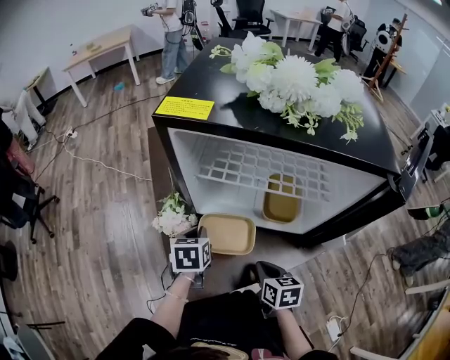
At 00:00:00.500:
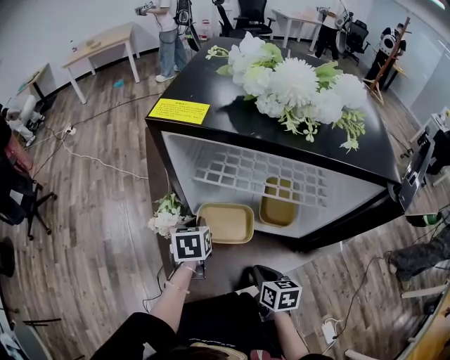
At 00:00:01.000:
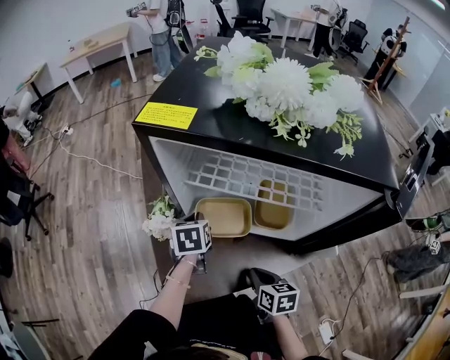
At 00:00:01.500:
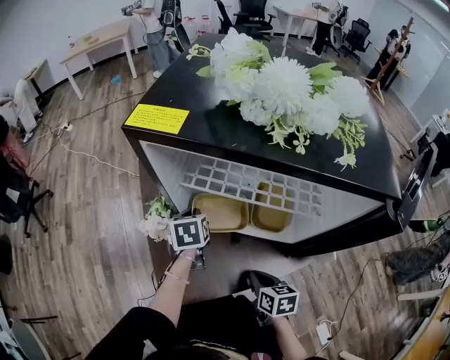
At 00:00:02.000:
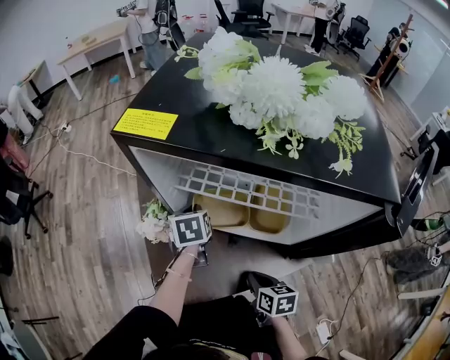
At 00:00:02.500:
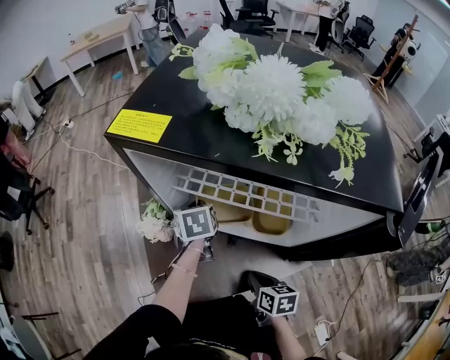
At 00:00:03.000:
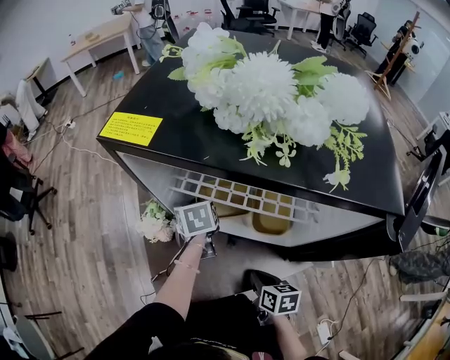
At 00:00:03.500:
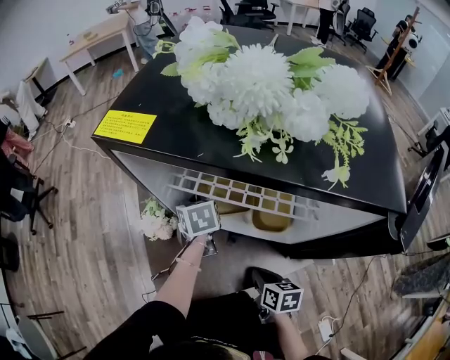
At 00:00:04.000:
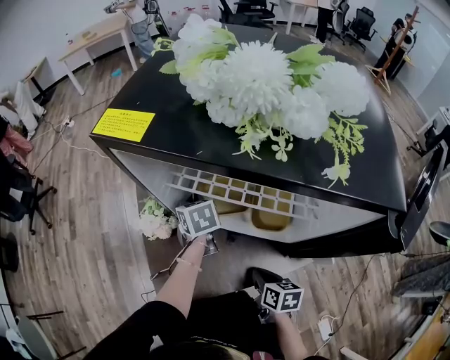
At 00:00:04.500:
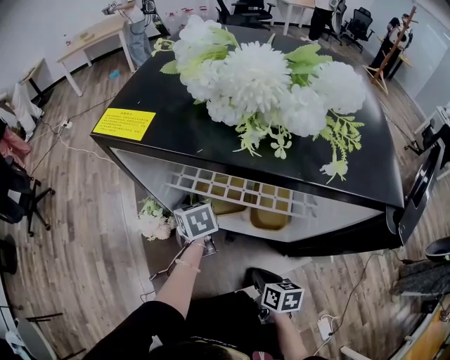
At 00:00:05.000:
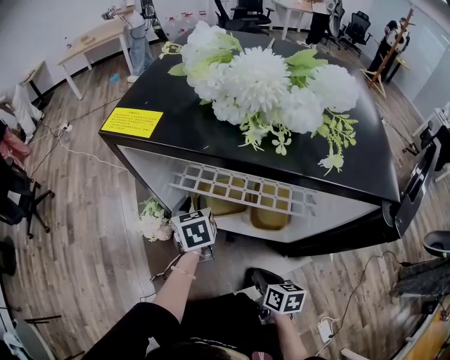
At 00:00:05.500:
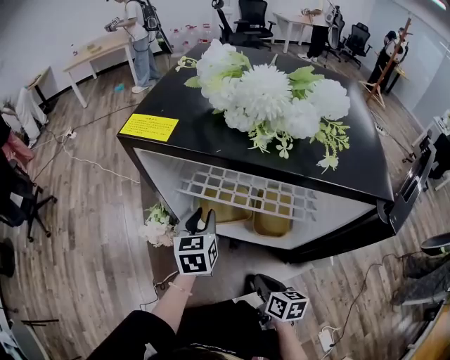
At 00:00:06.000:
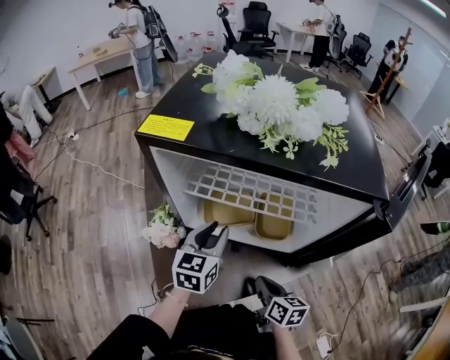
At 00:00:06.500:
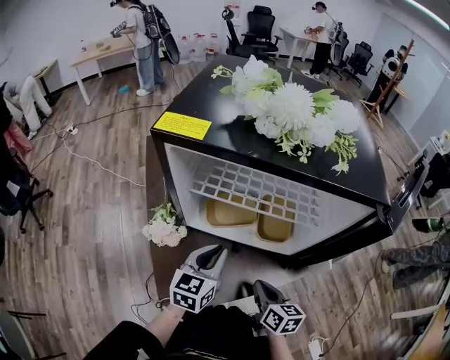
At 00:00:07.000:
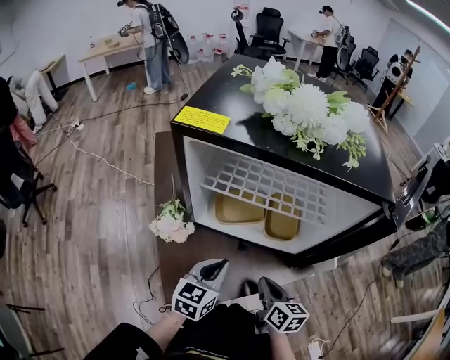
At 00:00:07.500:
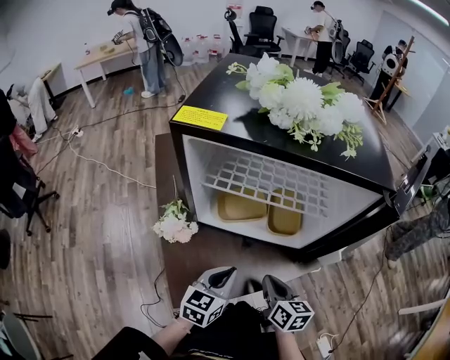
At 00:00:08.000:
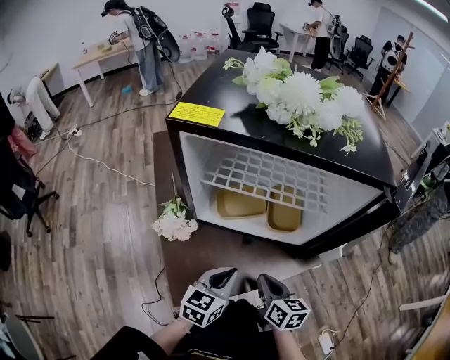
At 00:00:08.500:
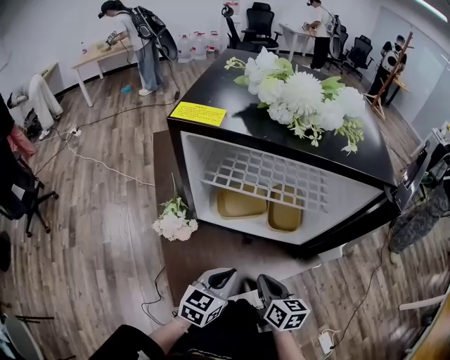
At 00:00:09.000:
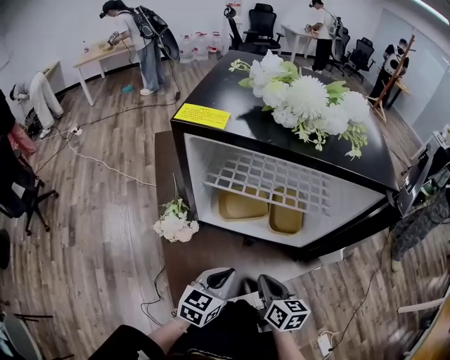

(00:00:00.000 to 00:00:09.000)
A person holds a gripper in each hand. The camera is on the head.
00:00:00.000 - 00:00:02.000: The left gripper goes about 10 cm forward.
00:00:02.000 - 00:00:04.500: The grippers make only small movements.
00:00:04.500 - 00:00:07.000: The right gripper moves upward, roughly 5 cm, and swivels about 20 degrees. The left gripper shifts by about 20 cm, rotates about 50 degrees, and closes its fingers.
00:00:07.000 - 00:00:09.000: There are only small adjustments of the grippers.

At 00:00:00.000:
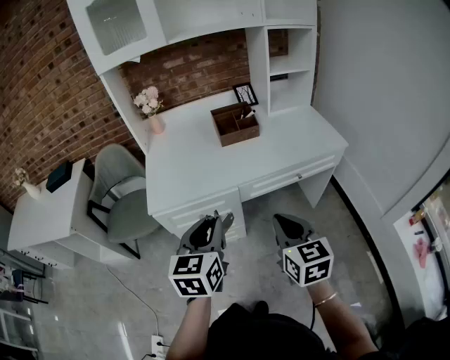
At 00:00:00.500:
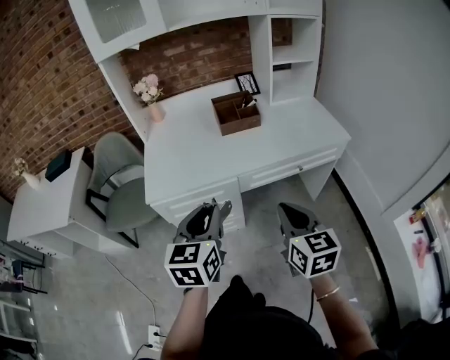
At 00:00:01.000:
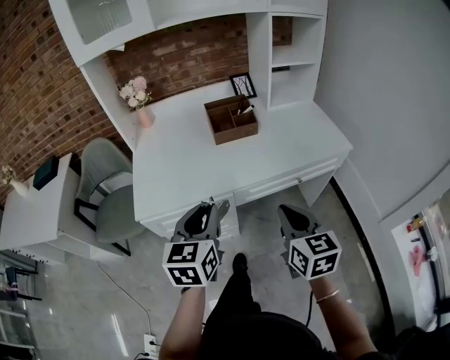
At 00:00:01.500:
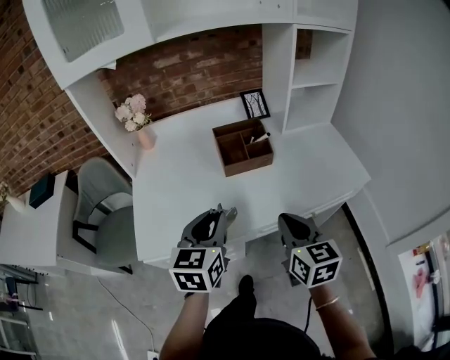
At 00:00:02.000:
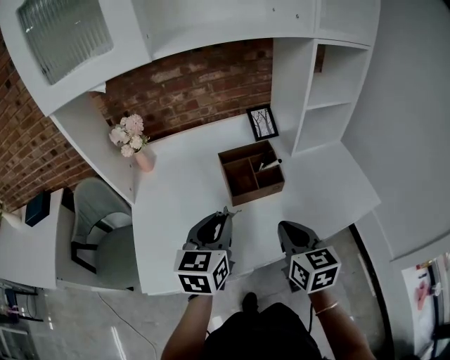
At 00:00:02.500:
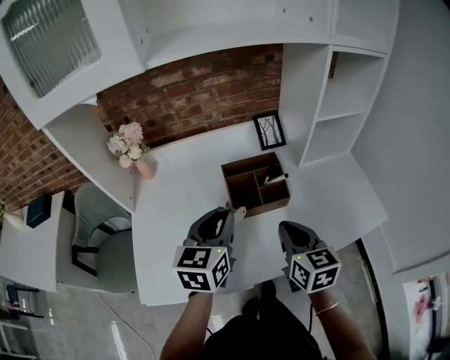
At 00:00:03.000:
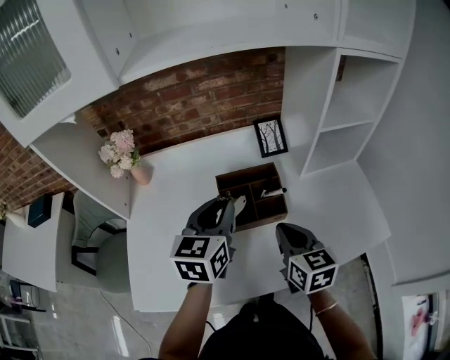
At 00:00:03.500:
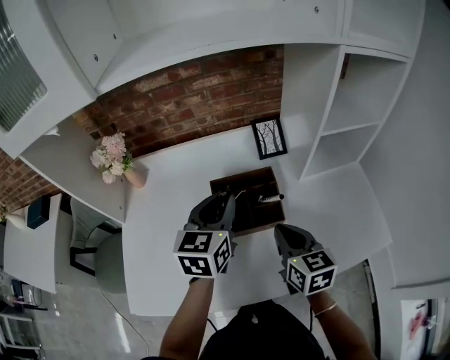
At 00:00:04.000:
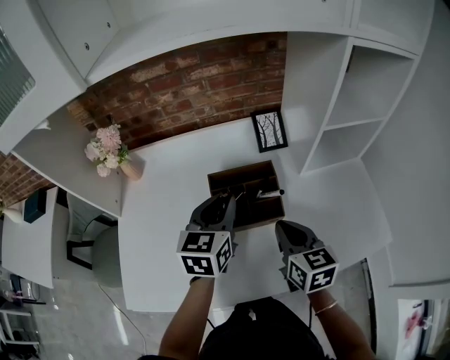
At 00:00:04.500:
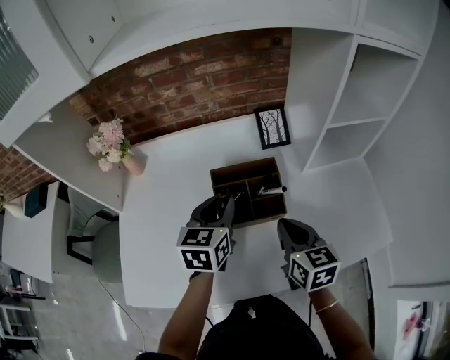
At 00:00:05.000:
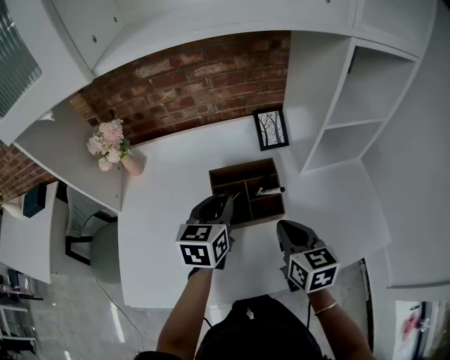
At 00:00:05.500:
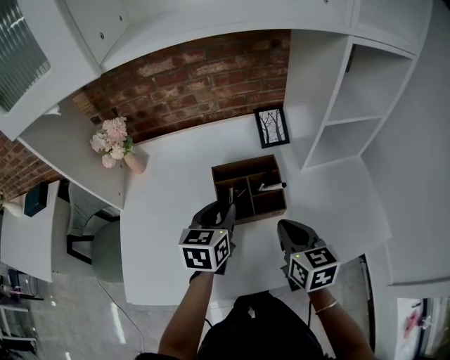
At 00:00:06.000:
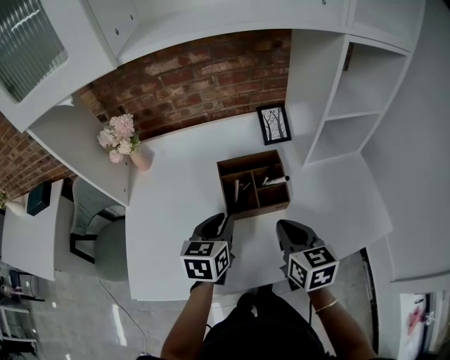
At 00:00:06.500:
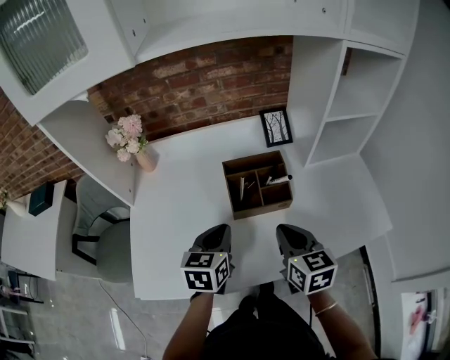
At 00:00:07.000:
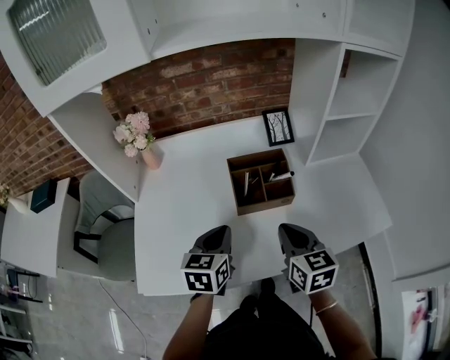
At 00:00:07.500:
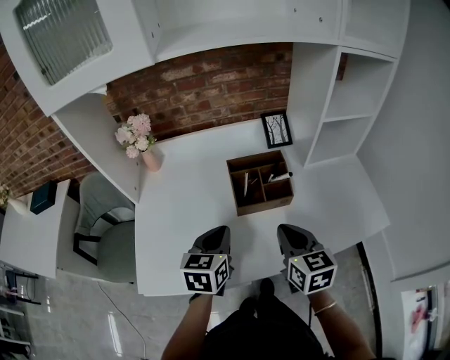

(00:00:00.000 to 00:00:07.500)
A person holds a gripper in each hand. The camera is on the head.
00:00:00.000 - 00:00:02.000: Both grippers move forward, approximately 35 cm.
00:00:02.000 - 00:00:04.000: The grippers both shift forward by approximately 15 cm.
00:00:04.000 - 00:00:05.500: The left gripper ends up about 5 cm from where it was.
00:00:05.500 - 00:00:07.500: The left gripper moves backward and to the left, roughly 15 cm, and closes its fingers, while the right gripper moves backward, approximately 5 cm.

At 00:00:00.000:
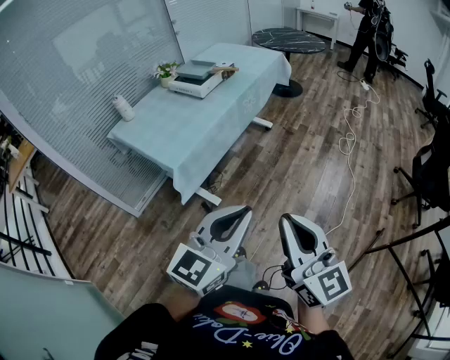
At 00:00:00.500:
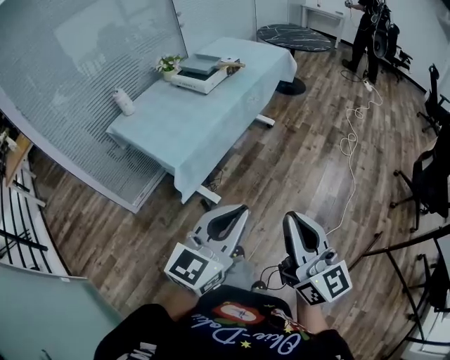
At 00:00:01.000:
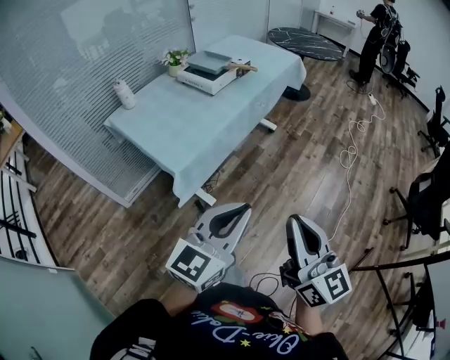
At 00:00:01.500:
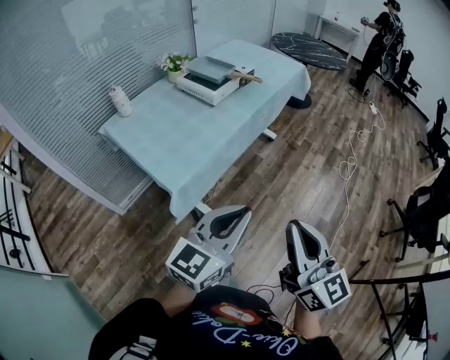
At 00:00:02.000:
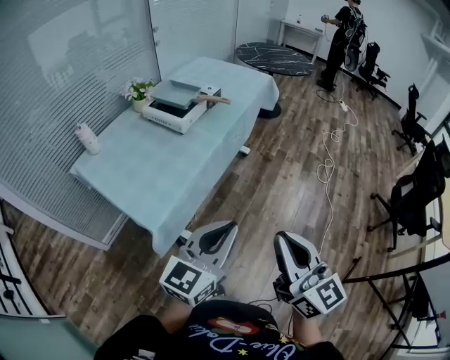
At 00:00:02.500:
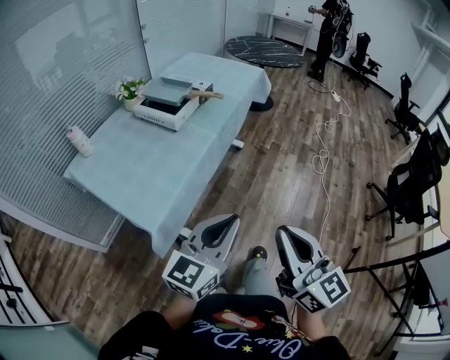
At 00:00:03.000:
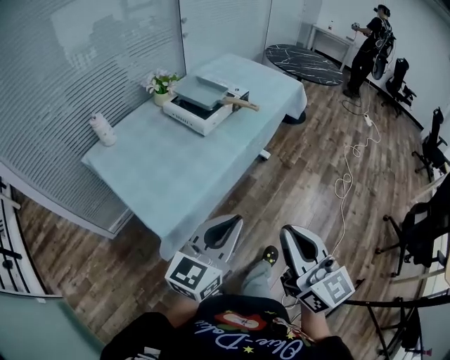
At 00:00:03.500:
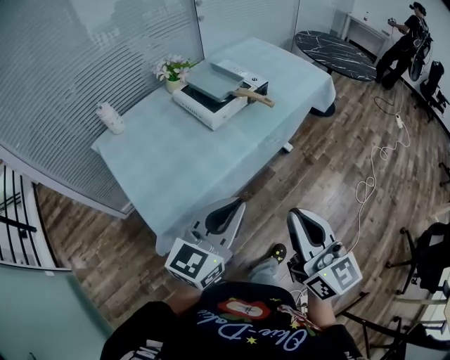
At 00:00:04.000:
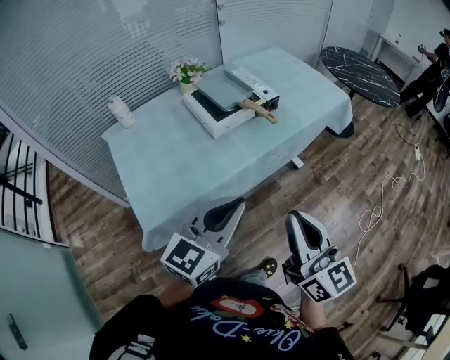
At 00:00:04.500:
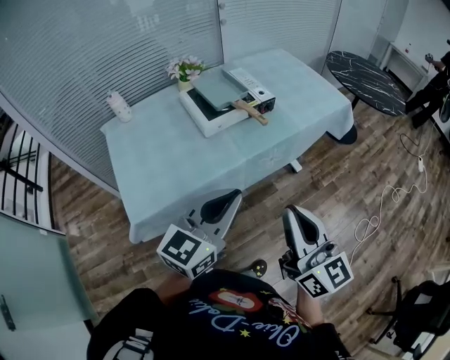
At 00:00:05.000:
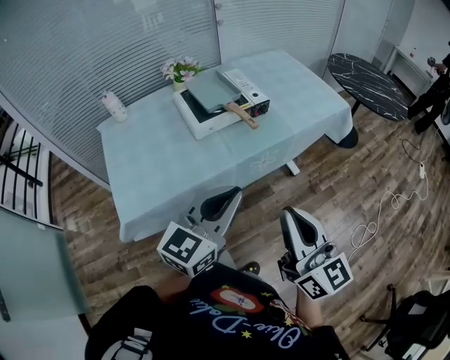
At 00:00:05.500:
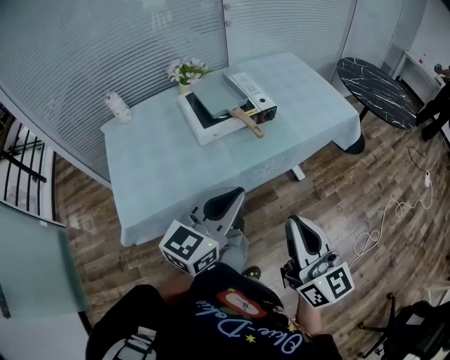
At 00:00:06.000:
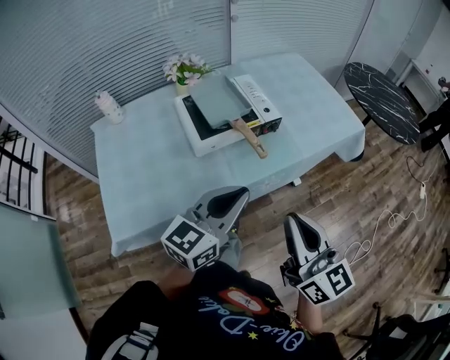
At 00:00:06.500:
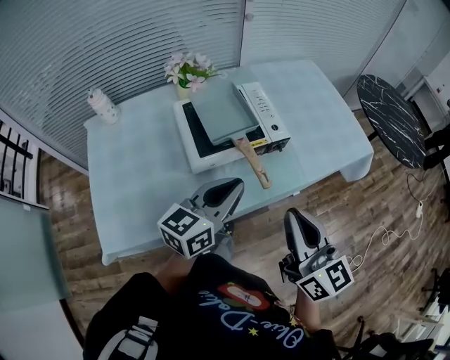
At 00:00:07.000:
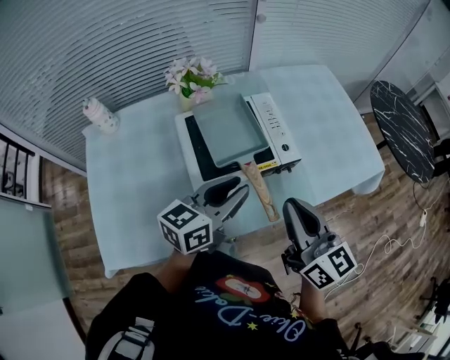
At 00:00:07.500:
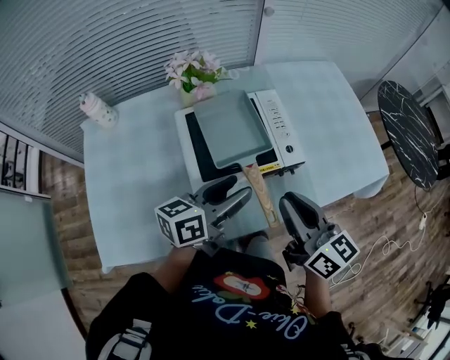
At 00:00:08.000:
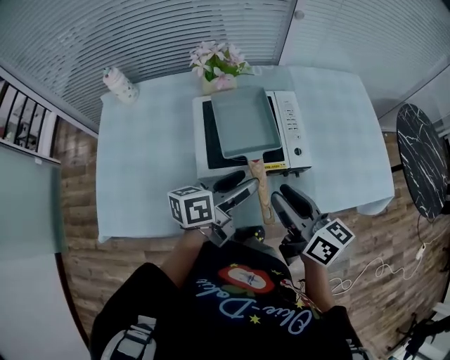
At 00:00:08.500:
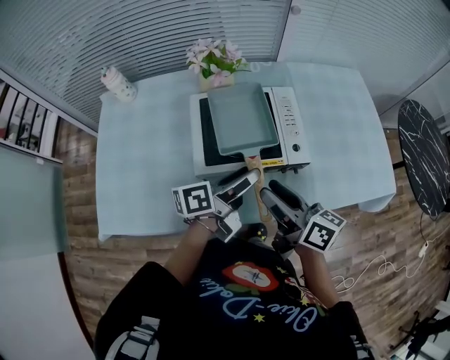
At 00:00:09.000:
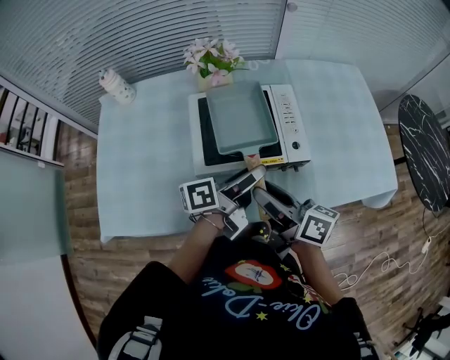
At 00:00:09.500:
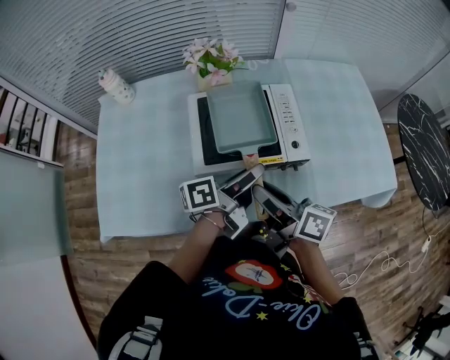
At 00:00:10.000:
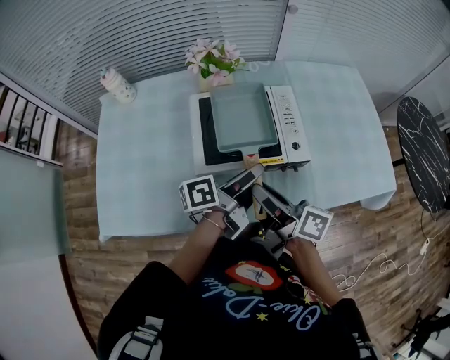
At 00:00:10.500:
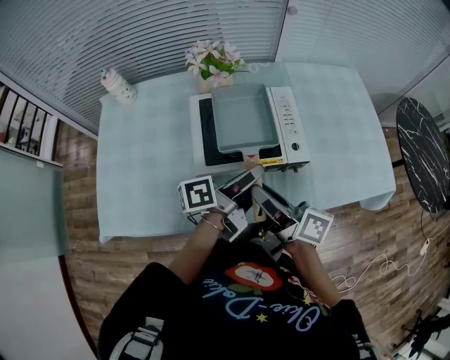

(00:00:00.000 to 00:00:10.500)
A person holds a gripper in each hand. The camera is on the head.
00:00:00.000 - 00:00:02.000: The two grippers go about 25 cm forward.
00:00:02.000 - 00:00:04.000: The left gripper changes place by about 25 cm, and swivels about 20 degrees. The right gripper shifts by about 30 cm, and changes its angle by about 30 degrees.
00:00:04.000 - 00:00:06.500: Both grippers travel together forward, roughly 25 cm. The left gripper rotates roughly 20 degrees.
00:00:06.500 - 00:00:08.500: Both grippers move forward and downward, about 15 cm. The left gripper twists some 50 degrees counterclockwise, seen from behind, and opens its fingers. Meanwhile the right gripper swivels approximately 50 degrees, and opens up.
00:00:08.500 - 00:00:10.500: The left gripper closes.
